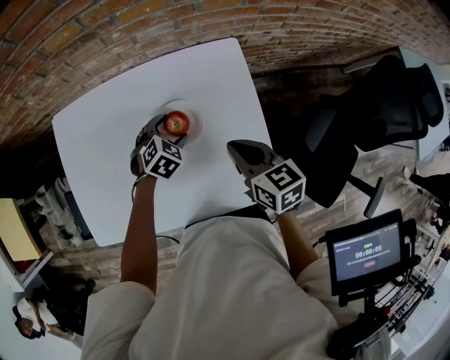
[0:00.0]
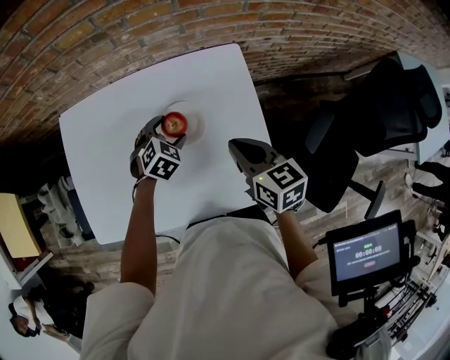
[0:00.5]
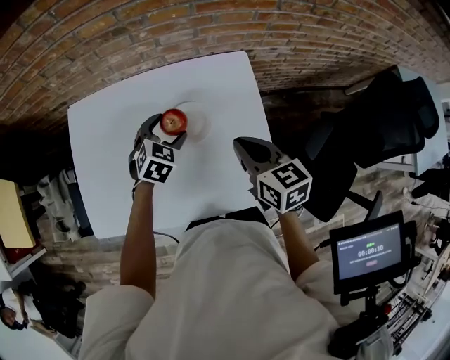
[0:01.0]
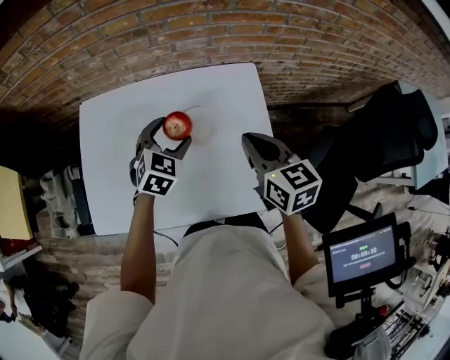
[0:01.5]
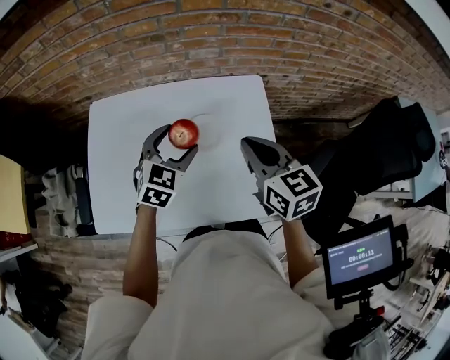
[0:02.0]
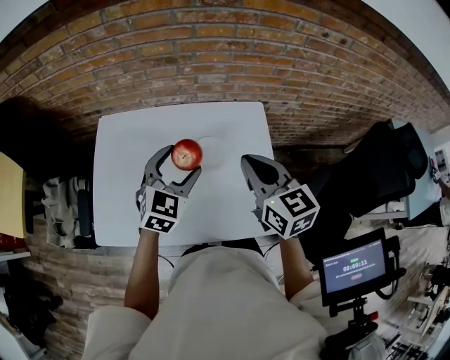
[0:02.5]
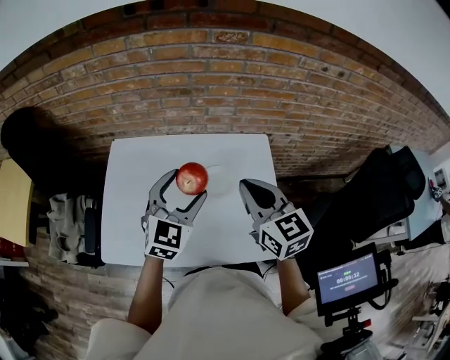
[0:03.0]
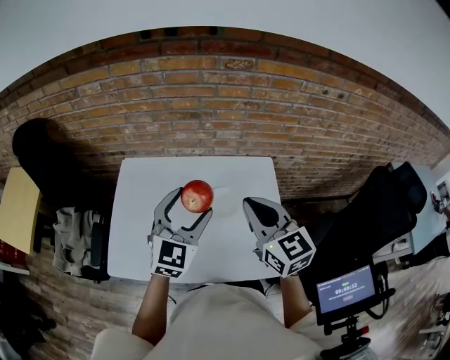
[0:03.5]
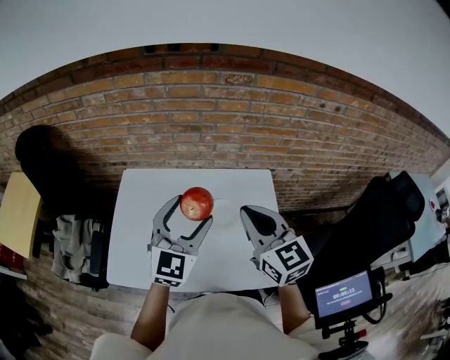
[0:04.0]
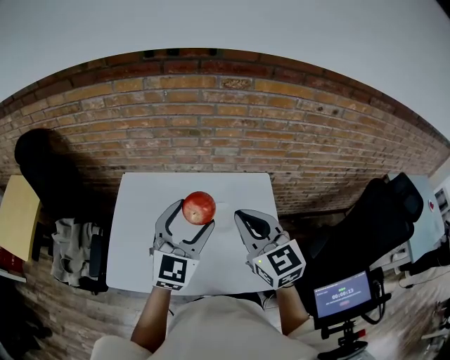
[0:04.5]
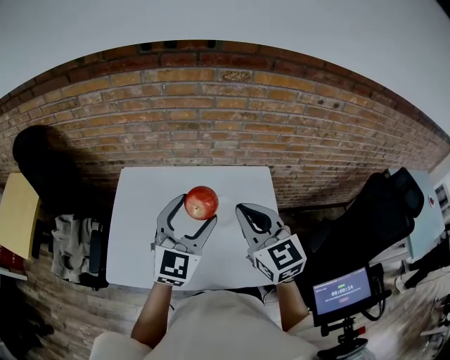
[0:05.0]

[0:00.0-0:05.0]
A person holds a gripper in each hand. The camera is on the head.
0:00.0 to 0:02.5: The right gripper shifts approximately 20 cm upward and to the left, and rotates about 20 degrees. Meanwhile the left gripper moves upward, roughly 25 cm, and tips its fingers upward by about 40 degrees.
0:02.5 to 0:05.0: The right gripper heads upward, covering roughly 5 cm; the left gripper goes about 10 cm upward, and rotates approximately 20 degrees.

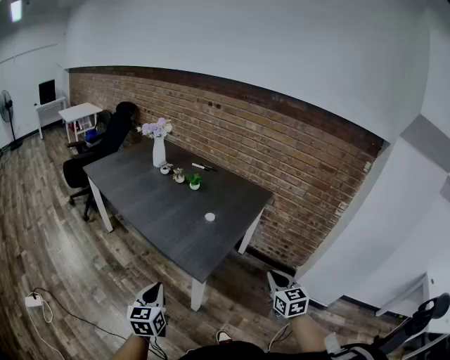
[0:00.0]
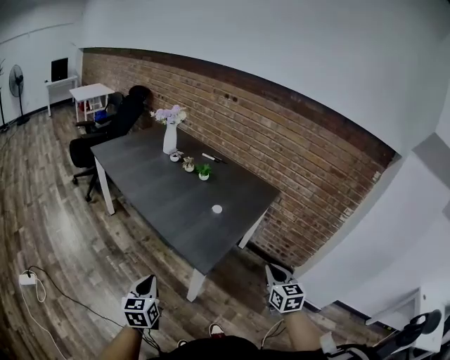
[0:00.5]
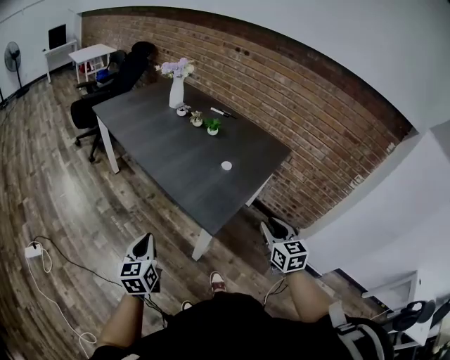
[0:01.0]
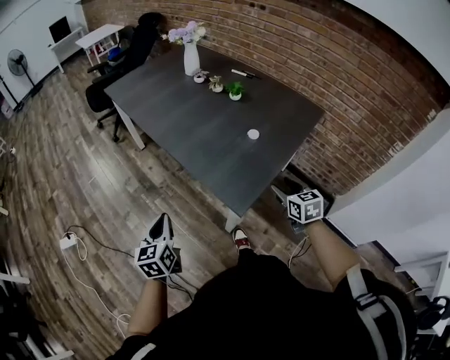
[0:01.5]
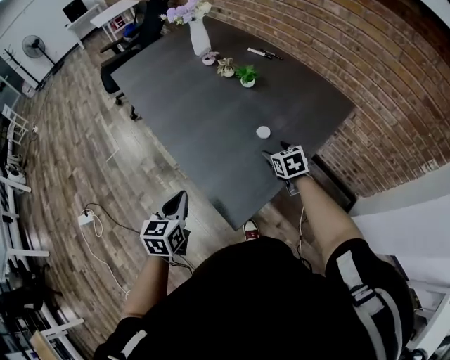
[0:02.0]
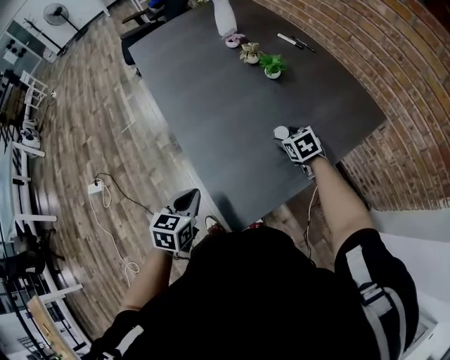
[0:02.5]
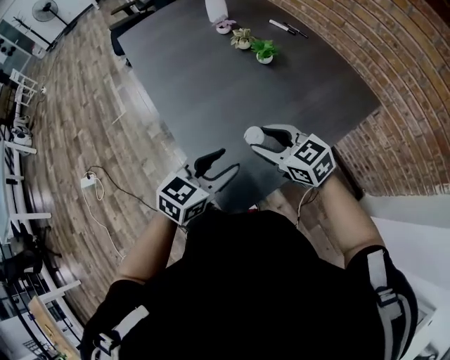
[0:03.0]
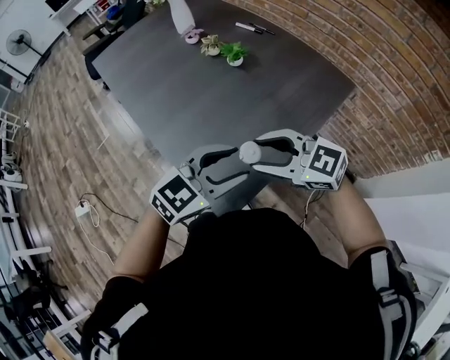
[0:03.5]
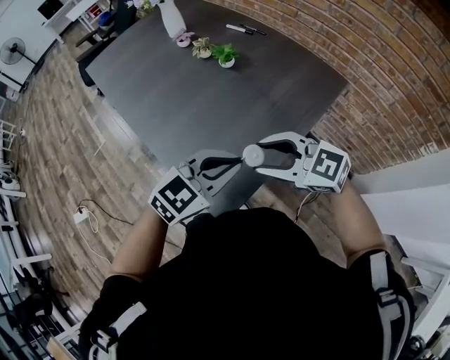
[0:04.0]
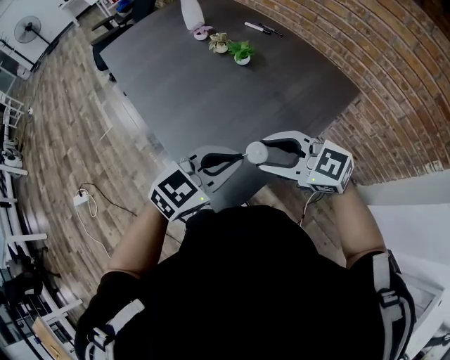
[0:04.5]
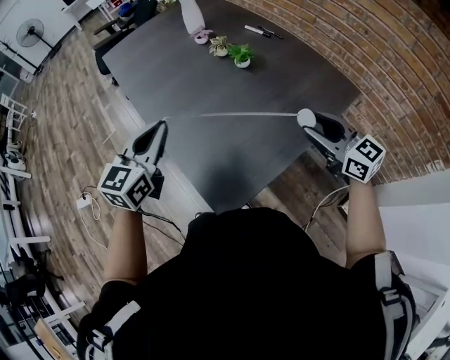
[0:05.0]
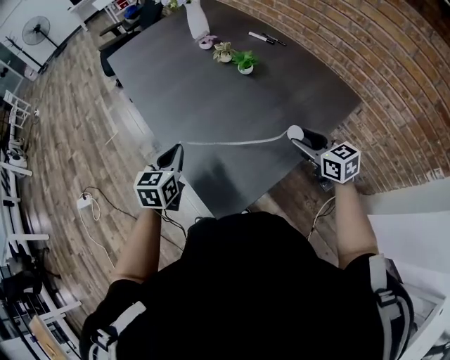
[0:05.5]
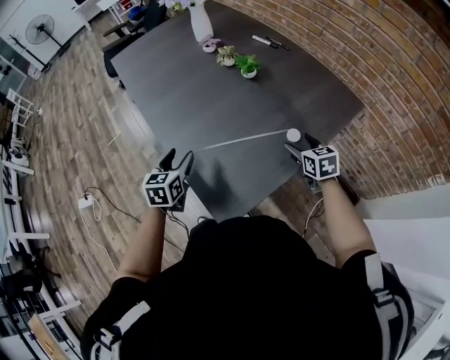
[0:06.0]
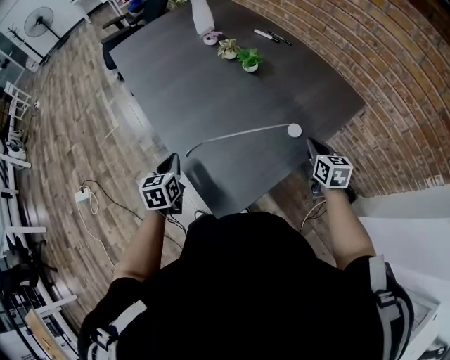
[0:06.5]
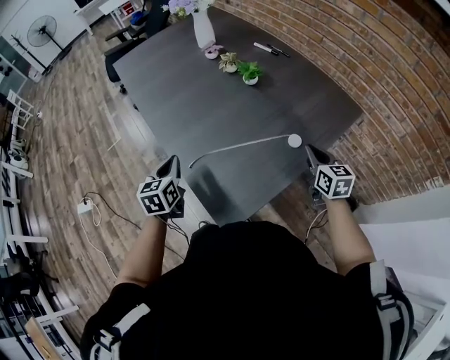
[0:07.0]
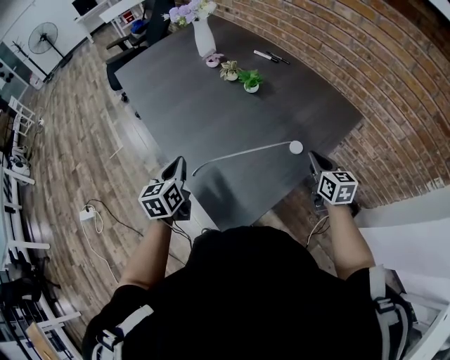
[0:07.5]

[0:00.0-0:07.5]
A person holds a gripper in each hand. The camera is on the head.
0:00.0 to 0:02.0: The left gripper heads forward, covering about 15 cm. Meanwhile the right gripper shifts about 40 cm forward and downward, rotates approximately 30 degrees, and opens.
0:02.0 to 0:04.0: The right gripper travels upward by about 15 cm, and swivels approximately 50 degrees. The left gripper moves approximately 25 cm, rotates about 60 degrees, and opens, then closes once more.
0:04.0 to 0:05.5: The right gripper shifts by approximately 20 cm, and swivels some 30 degrees, while the left gripper moves approximately 25 cm, and rotates approximately 60 degrees.
0:05.5 to 0:07.5: The left gripper opens and closes again, while the right gripper swivels about 20 degrees, and closes its fingers.

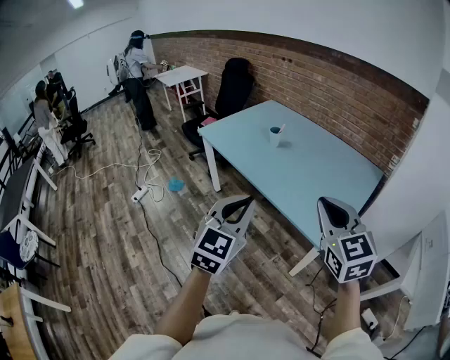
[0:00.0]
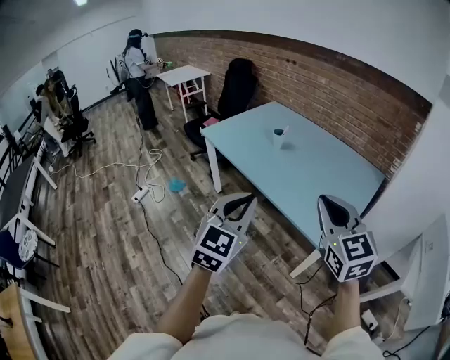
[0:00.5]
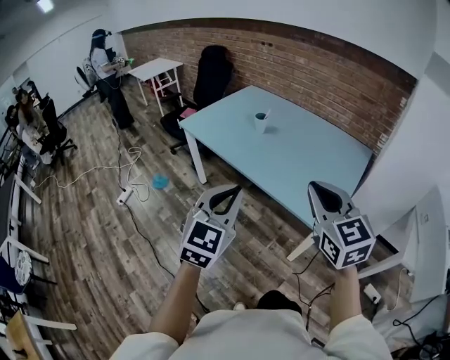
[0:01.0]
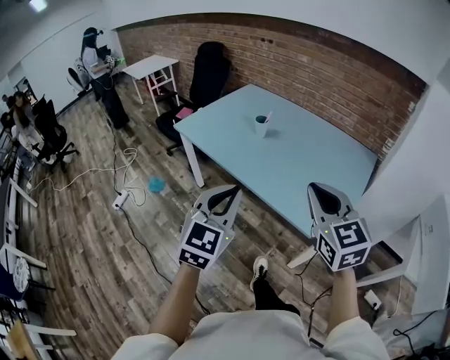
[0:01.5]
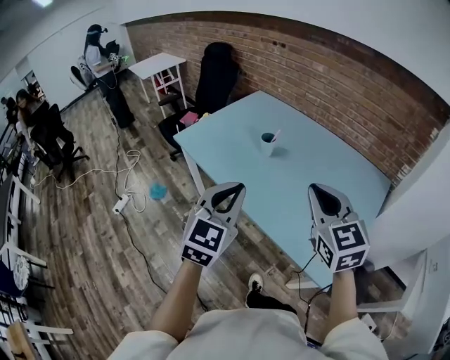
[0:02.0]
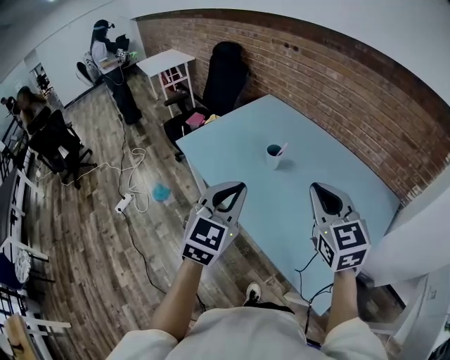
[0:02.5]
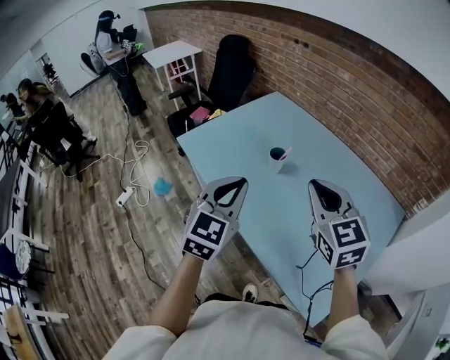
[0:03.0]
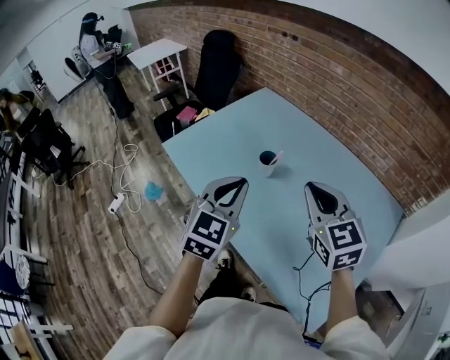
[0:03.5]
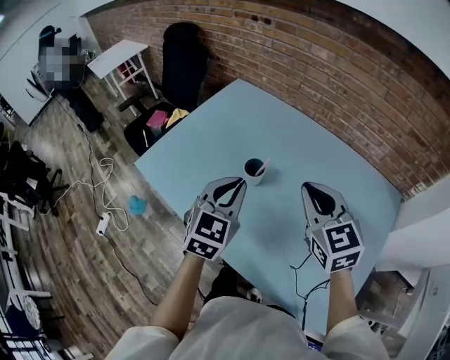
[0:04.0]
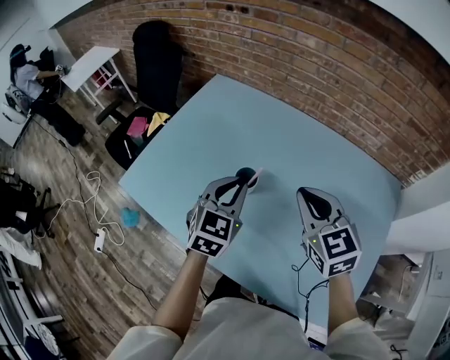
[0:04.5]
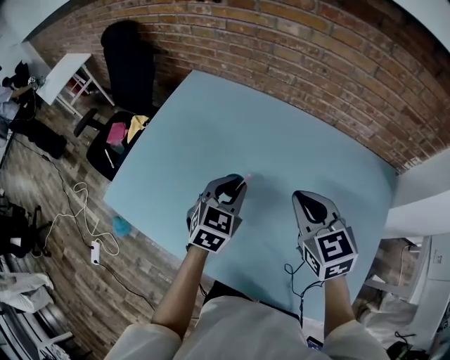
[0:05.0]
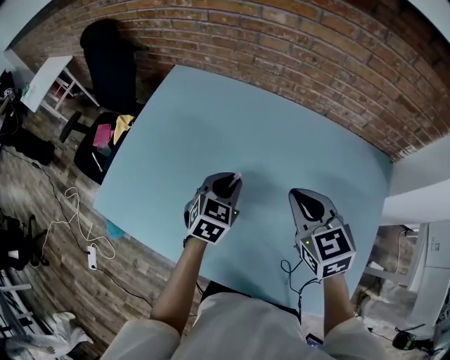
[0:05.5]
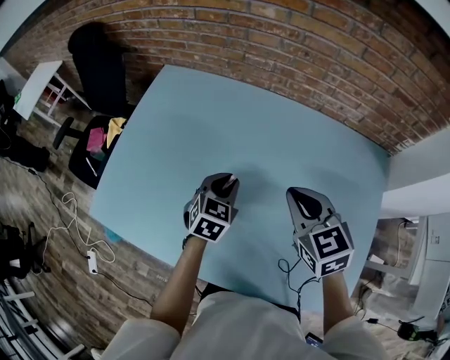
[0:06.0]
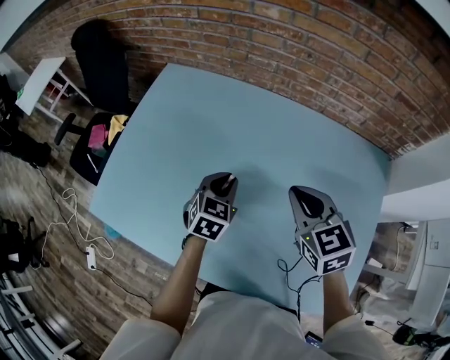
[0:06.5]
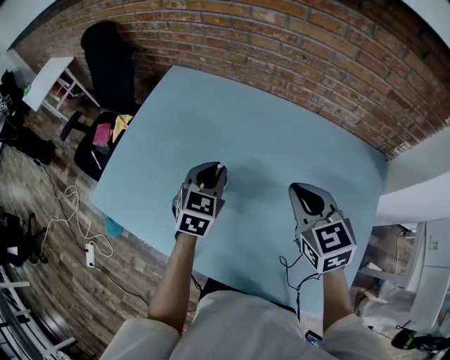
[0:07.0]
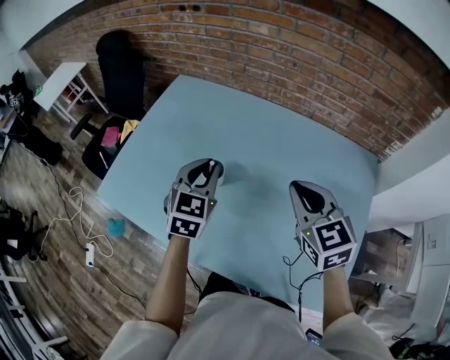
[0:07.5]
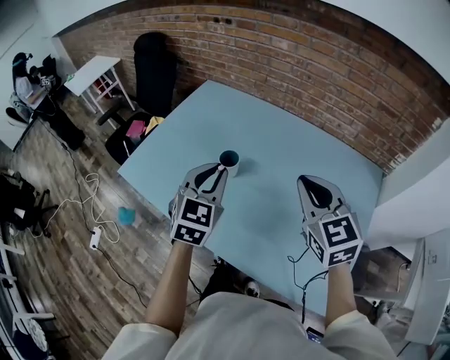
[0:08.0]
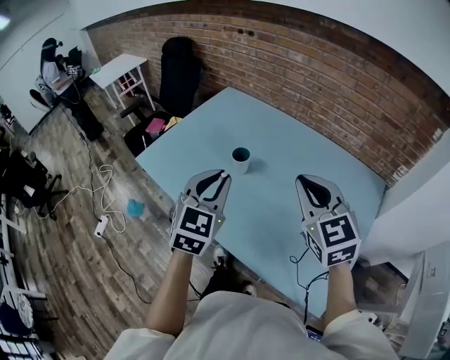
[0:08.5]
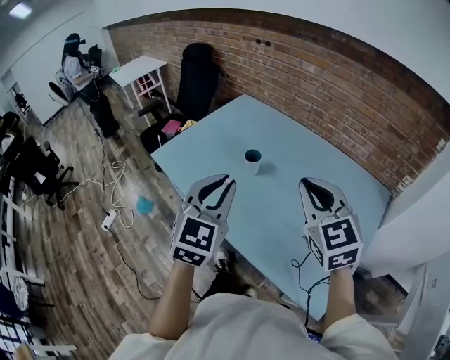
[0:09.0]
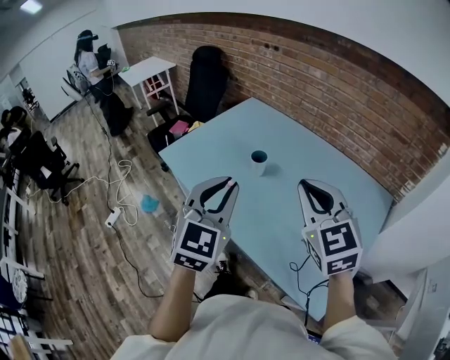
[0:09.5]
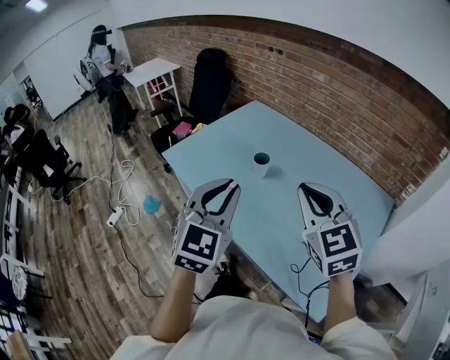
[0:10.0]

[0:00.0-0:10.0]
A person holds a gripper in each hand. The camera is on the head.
0:00.0 to 0:02.0: The grippers both shift forward by some 25 cm.
0:02.0 to 0:04.0: Both grippers move forward, about 35 cm.
0:04.0 to 0:06.0: The right gripper is displaced forward and downward by roughly 15 cm, and rotates about 20 degrees. Meanwhile the left gripper goes some 25 cm downward and forward, and rotates roughly 30 degrees.
0:06.0 to 0:08.0: The right gripper travels backward and upward by approximately 20 cm. The left gripper travels upward and backward by some 25 cm, and swivels about 30 degrees.
0:08.0 to 0:10.0: The right gripper is displaced backward, to the left and upward by approximately 15 cm. The left gripper moves backward and upward, approximately 25 cm.

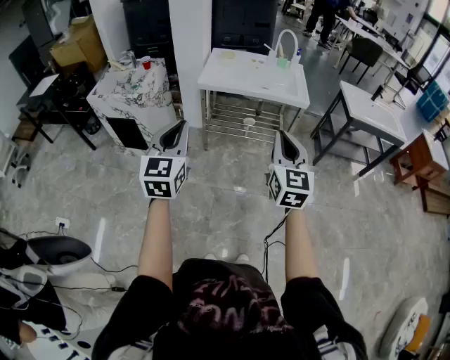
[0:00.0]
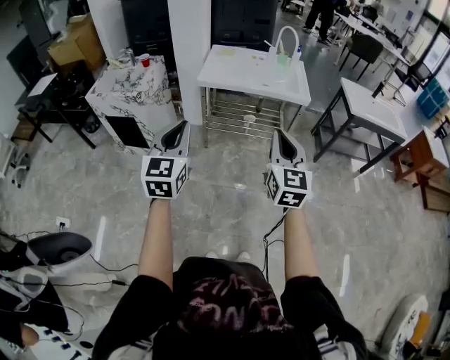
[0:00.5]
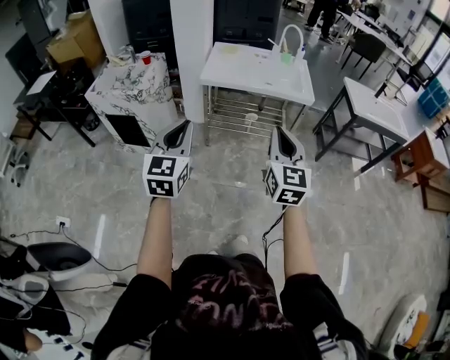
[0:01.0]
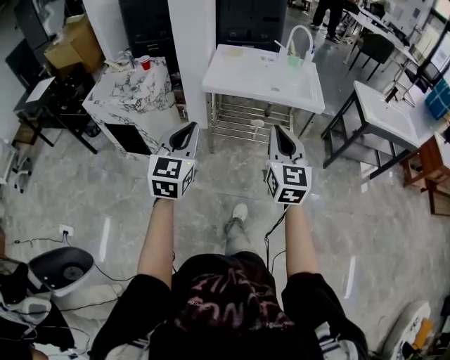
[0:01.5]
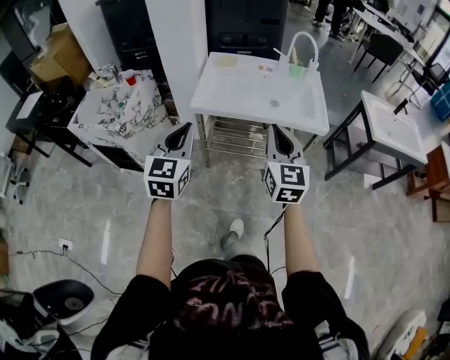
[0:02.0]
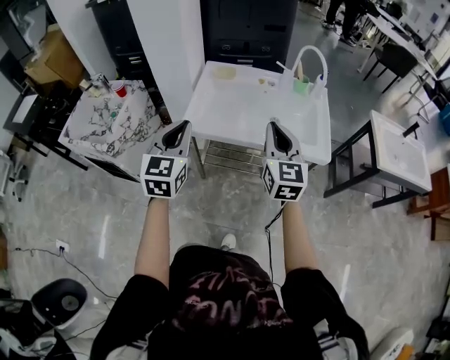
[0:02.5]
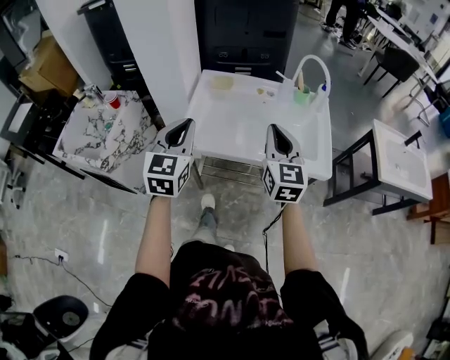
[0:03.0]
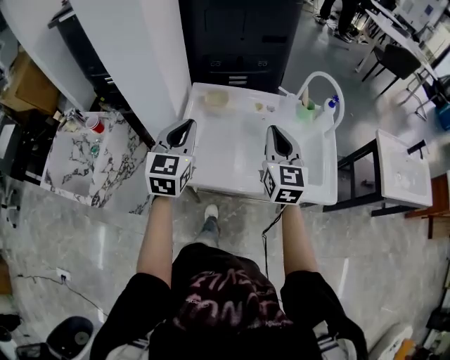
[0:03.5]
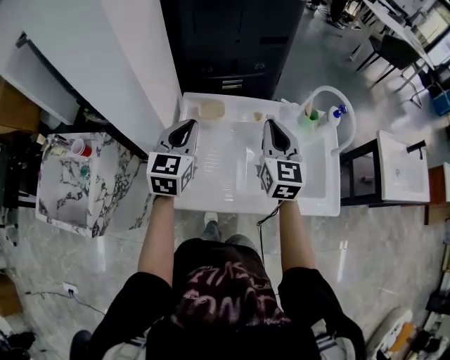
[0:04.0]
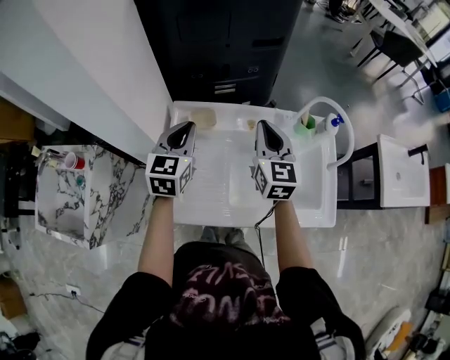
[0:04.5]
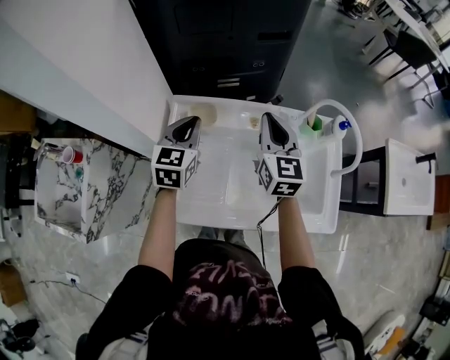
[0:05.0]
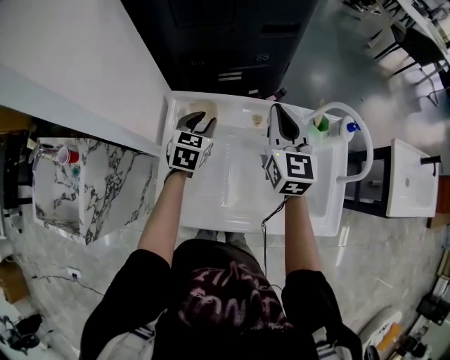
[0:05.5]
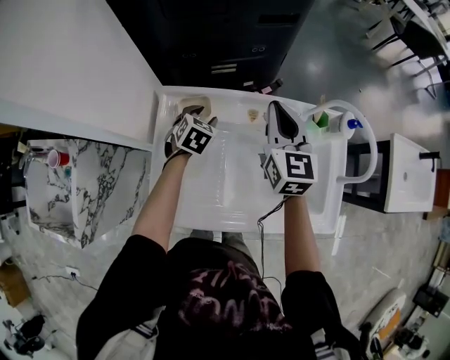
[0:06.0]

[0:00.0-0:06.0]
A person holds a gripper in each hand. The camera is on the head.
0:00.0 to 0:02.0: The two grippers go roughly 30 cm forward.
0:02.0 to 0:04.0: The pair of grippers is taken forward, approximately 50 cm.
0:04.0 to 0:06.0: The left gripper travels downward and forward by roughly 30 cm, points its fingers roughly 40 degrees further downward, and opens up; the right gripper moves forward, approximately 15 cm.
